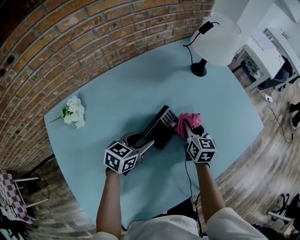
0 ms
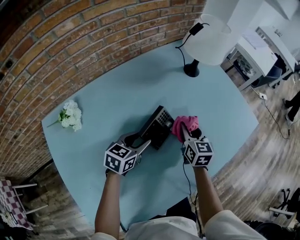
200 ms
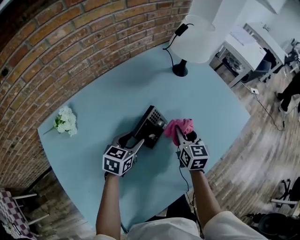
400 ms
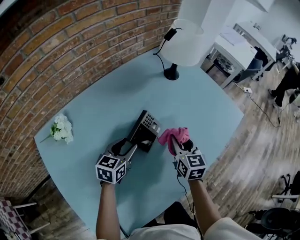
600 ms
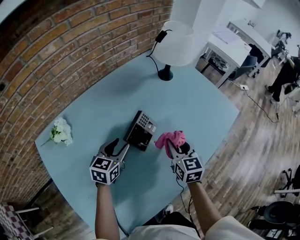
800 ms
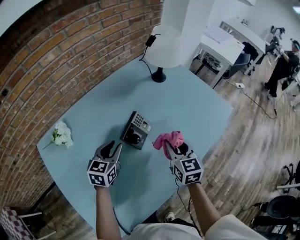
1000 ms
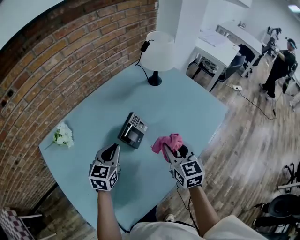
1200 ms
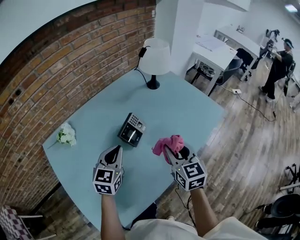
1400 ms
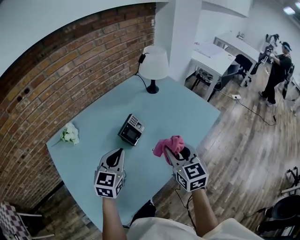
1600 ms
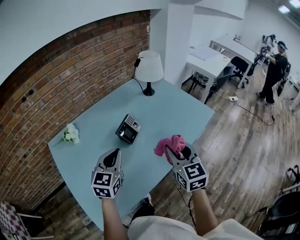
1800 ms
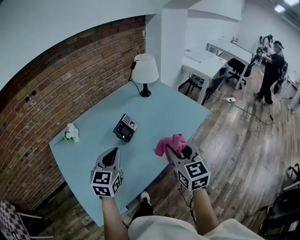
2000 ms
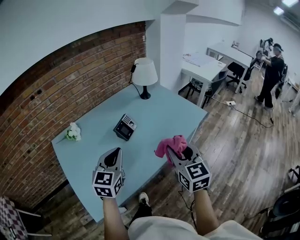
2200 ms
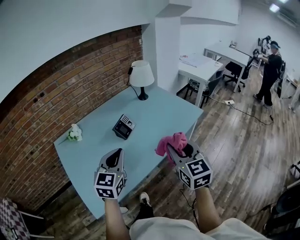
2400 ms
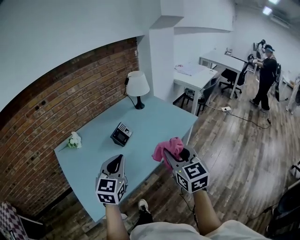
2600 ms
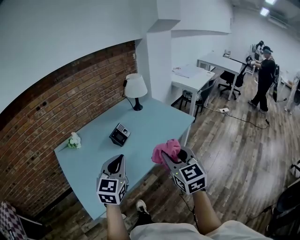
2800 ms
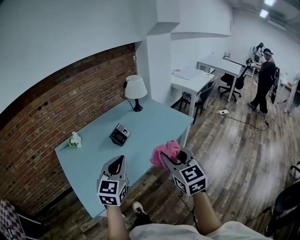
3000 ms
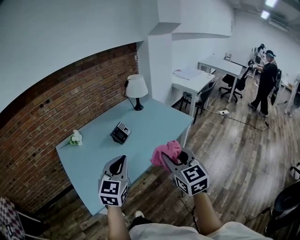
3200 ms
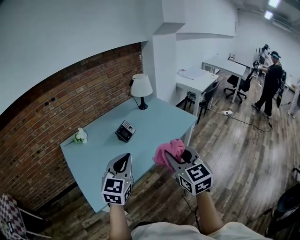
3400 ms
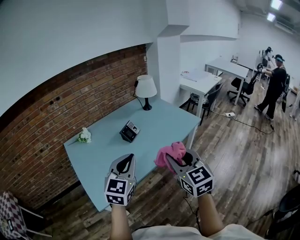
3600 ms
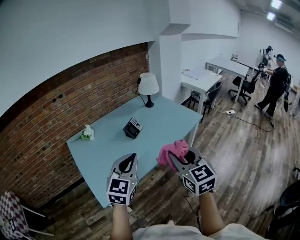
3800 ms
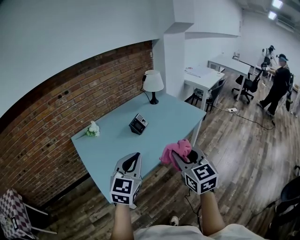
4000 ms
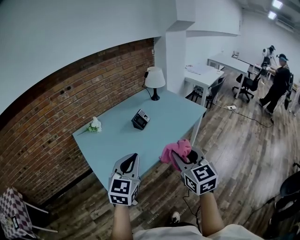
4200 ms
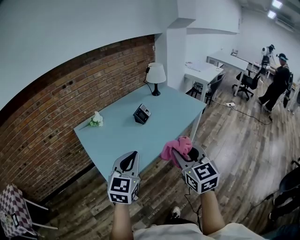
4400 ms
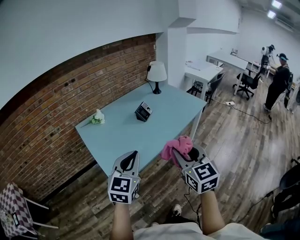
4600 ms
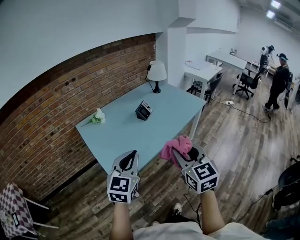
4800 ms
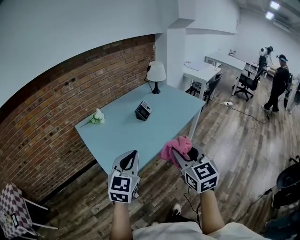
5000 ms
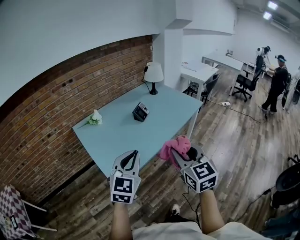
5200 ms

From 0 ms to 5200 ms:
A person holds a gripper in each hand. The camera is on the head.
From 0 ms to 1800 ms: The right gripper travels backward, upward and to the right by approximately 40 cm; the left gripper shifts some 30 cm upward and backward, rotates some 30 degrees, and closes its fingers.
From 1800 ms to 3400 ms: The left gripper goes about 30 cm backward, to the right and upward. Meanwhile the right gripper moves backward and upward, about 25 cm.
From 3400 ms to 5200 ms: The two grippers go some 20 cm backward and to the left.

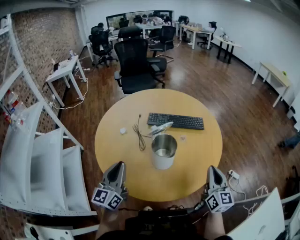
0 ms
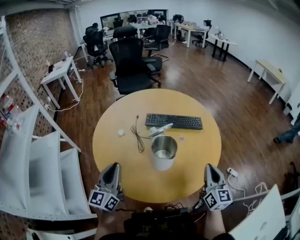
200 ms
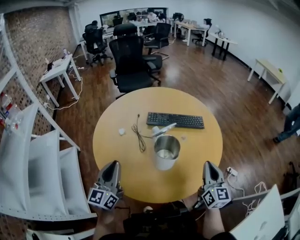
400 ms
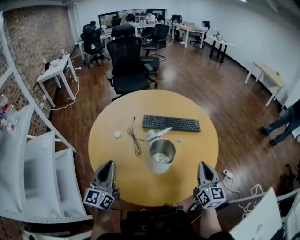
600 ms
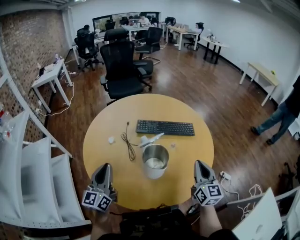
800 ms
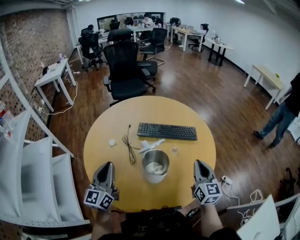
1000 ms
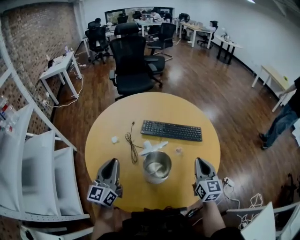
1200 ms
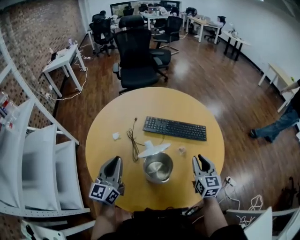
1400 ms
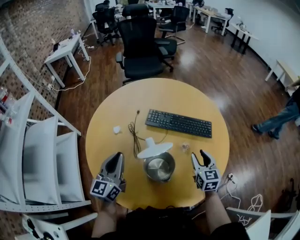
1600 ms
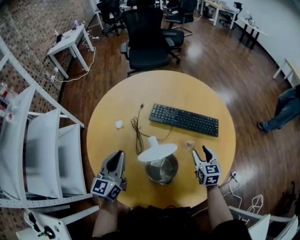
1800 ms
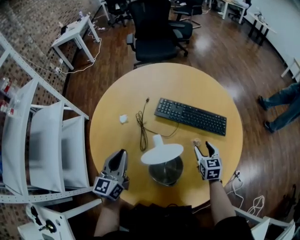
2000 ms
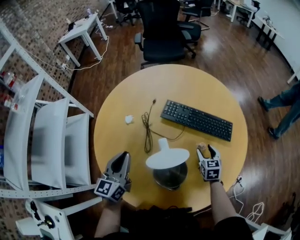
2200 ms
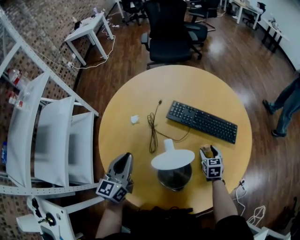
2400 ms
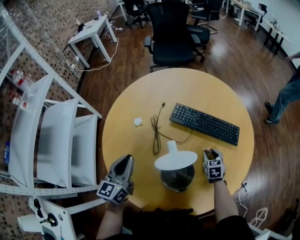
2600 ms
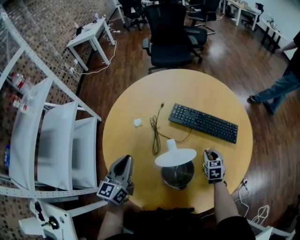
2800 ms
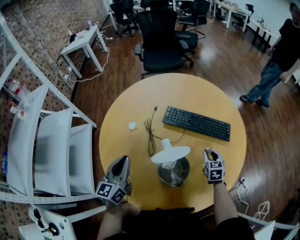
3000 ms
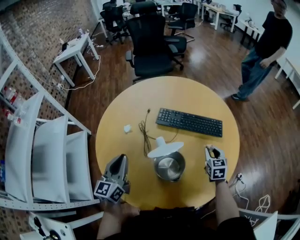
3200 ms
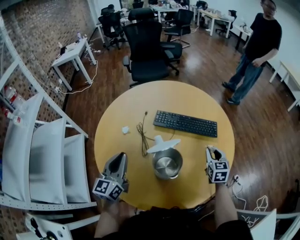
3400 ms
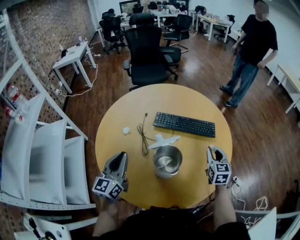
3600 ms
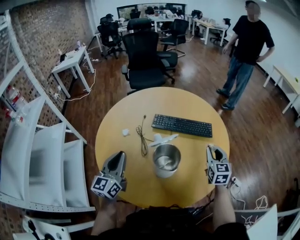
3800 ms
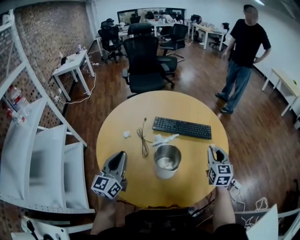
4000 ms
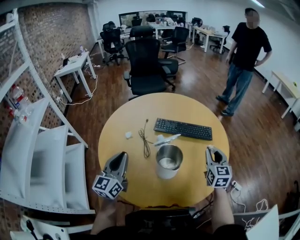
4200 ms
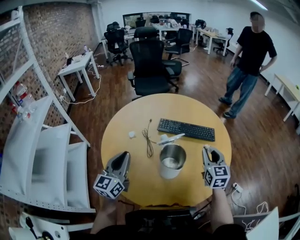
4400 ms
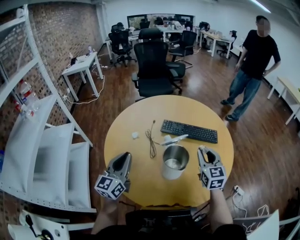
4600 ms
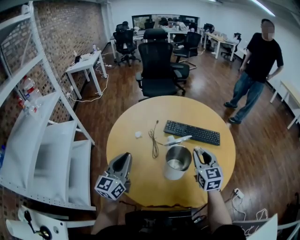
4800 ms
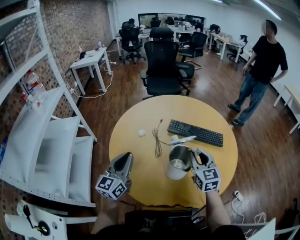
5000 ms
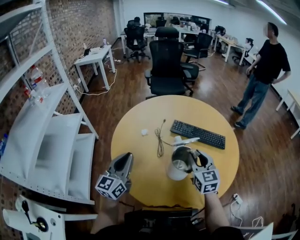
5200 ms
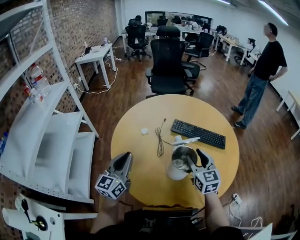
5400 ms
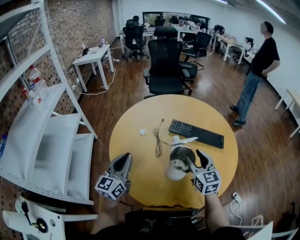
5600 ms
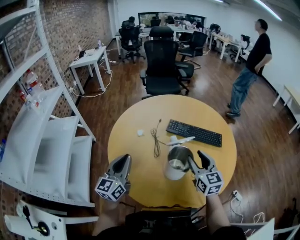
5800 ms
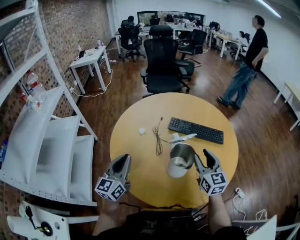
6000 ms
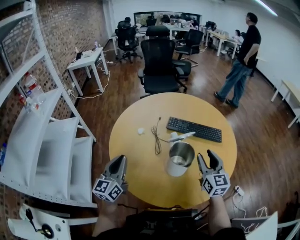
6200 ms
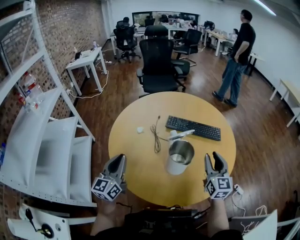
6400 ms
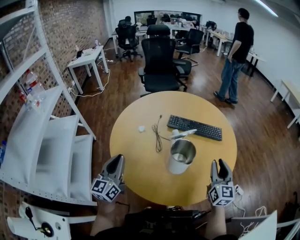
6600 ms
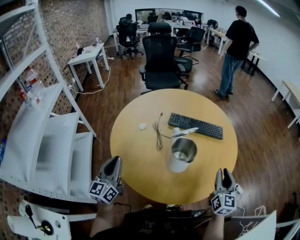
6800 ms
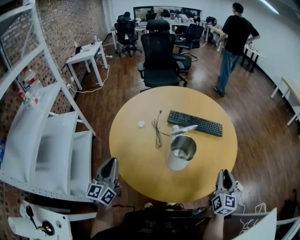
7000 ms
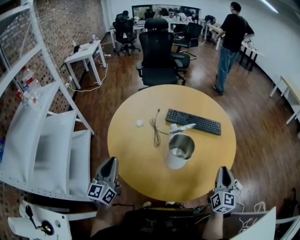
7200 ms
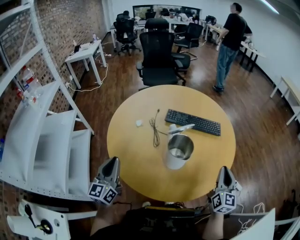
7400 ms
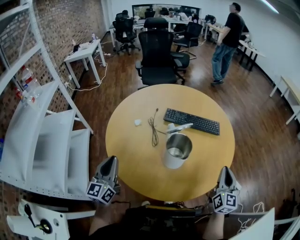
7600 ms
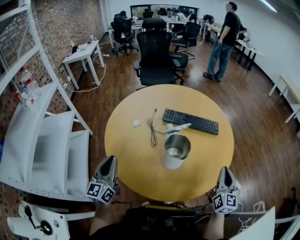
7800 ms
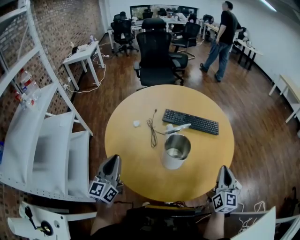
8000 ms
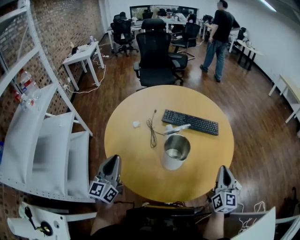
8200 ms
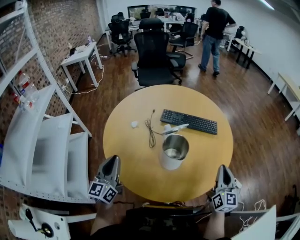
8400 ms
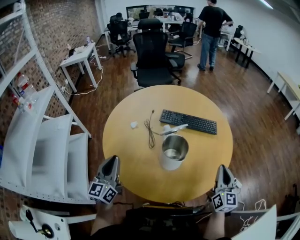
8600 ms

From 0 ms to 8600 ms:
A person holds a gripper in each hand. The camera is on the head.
From 0 ms to 1400 ms: The right gripper goes about 20 cm forward, and opens up. Meanwhile the left gripper shifts roughly 15 cm forward.
From 1400 ms to 2800 ms: The right gripper travels downward and forward by roughly 20 cm, tips its fingers downward by approximately 30 degrees, and opens, then closes once more, while the left gripper travels downward by approximately 5 cm.
From 2800 ms to 4400 ms: The right gripper heads upward and backward, covering some 25 cm, and tips its fingers upward by approximately 30 degrees. The left gripper moves upward and backward, about 10 cm.
From 4400 ms to 5800 ms: The right gripper heads to the left, covering approximately 10 cm, and opens.
From 5800 ms to 7200 ms: The right gripper moves to the right and backward, some 20 cm, turns by approximately 30 degrees, and closes up. The left gripper moves backward and to the left, approximately 10 cm.
From 7200 ms to 8600 ms: The grippers move only a little.

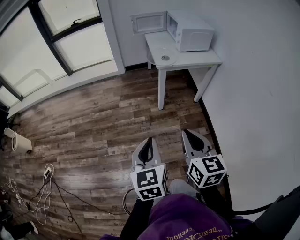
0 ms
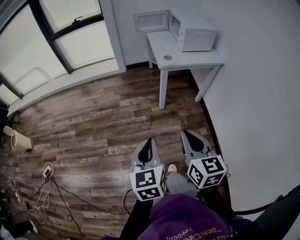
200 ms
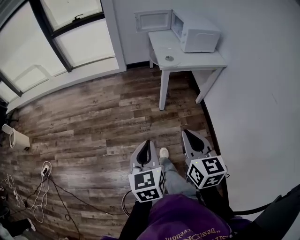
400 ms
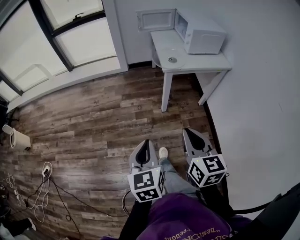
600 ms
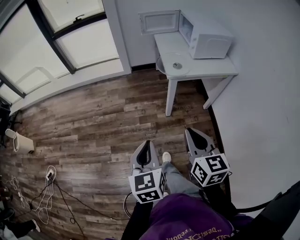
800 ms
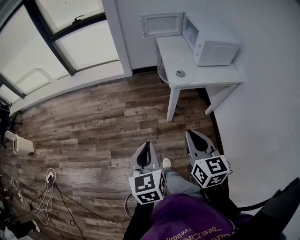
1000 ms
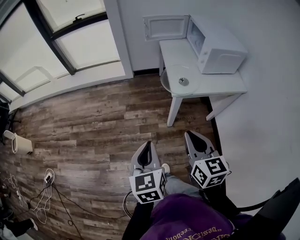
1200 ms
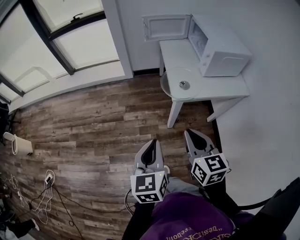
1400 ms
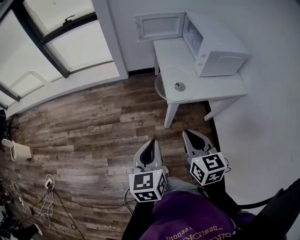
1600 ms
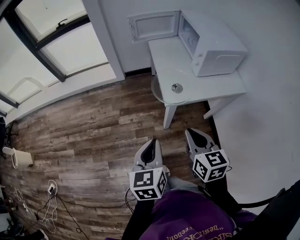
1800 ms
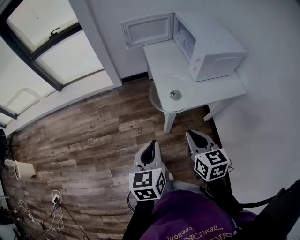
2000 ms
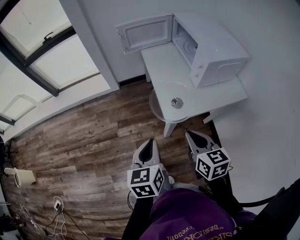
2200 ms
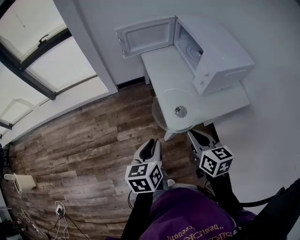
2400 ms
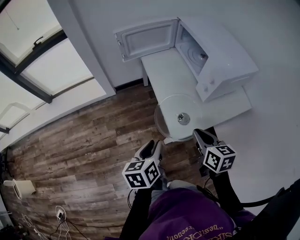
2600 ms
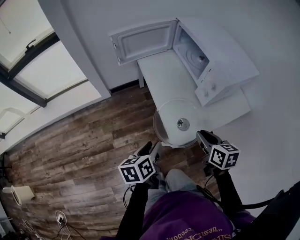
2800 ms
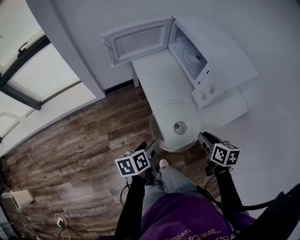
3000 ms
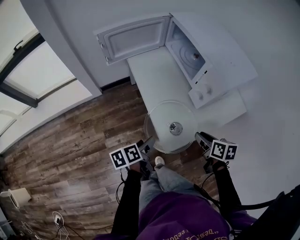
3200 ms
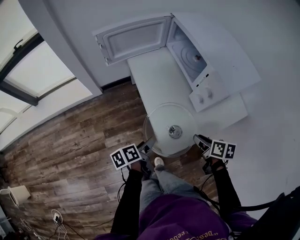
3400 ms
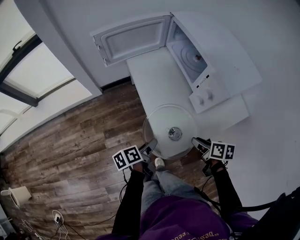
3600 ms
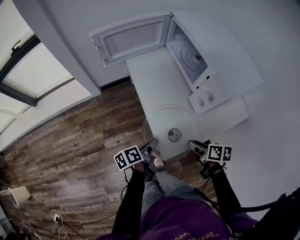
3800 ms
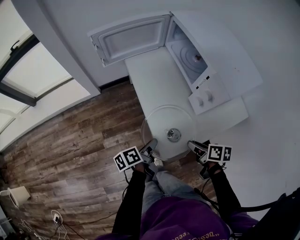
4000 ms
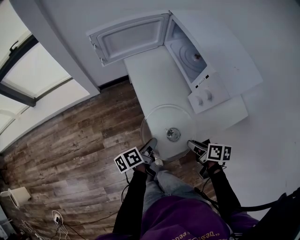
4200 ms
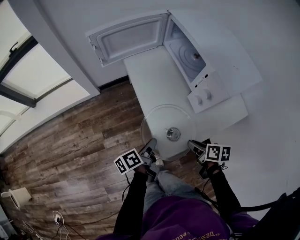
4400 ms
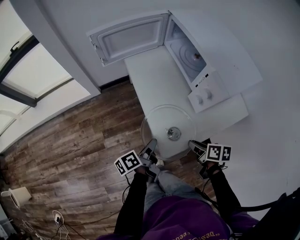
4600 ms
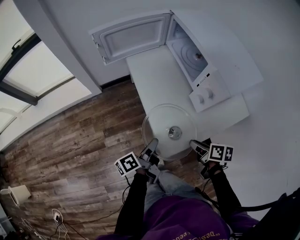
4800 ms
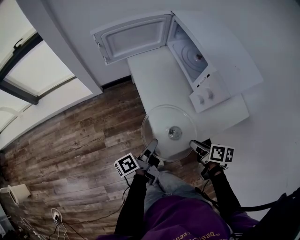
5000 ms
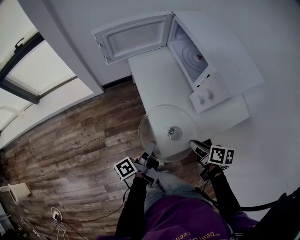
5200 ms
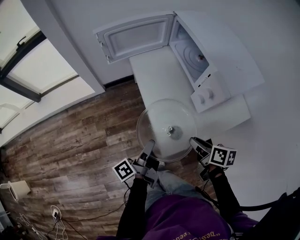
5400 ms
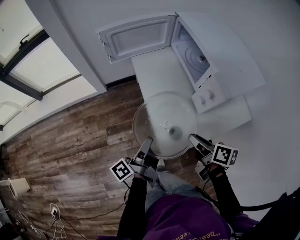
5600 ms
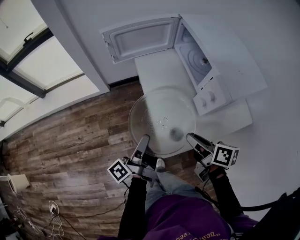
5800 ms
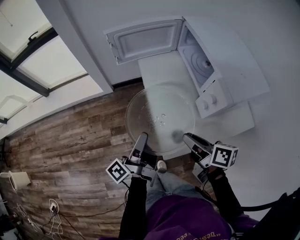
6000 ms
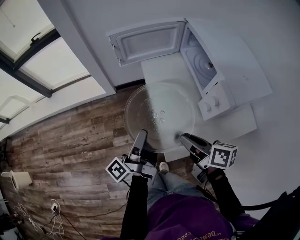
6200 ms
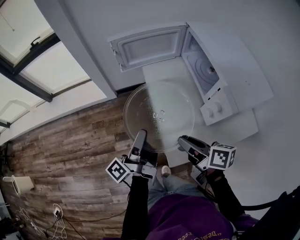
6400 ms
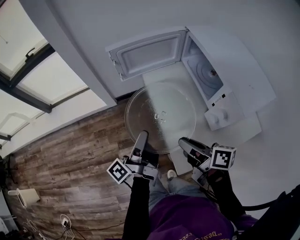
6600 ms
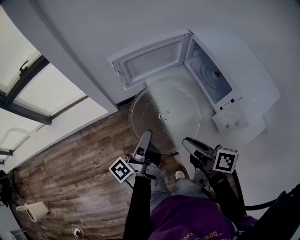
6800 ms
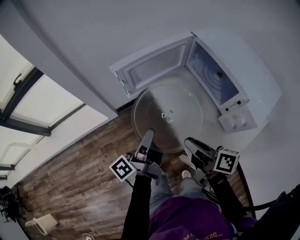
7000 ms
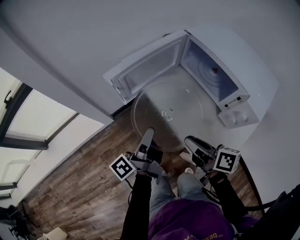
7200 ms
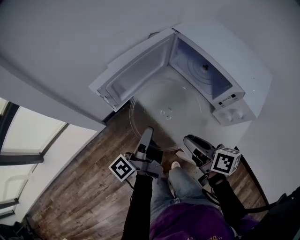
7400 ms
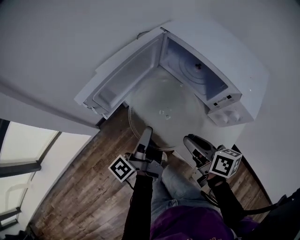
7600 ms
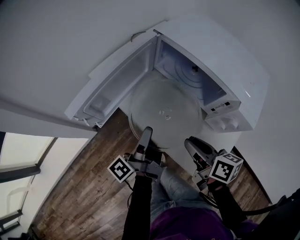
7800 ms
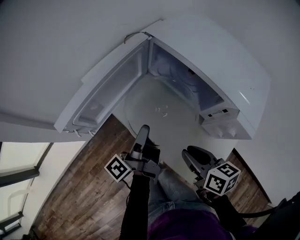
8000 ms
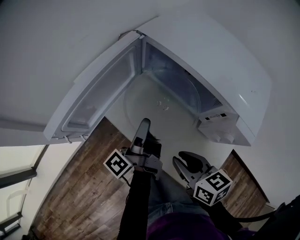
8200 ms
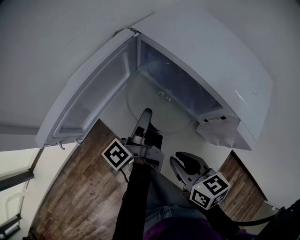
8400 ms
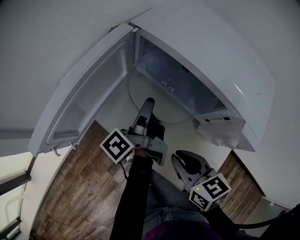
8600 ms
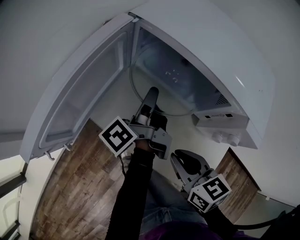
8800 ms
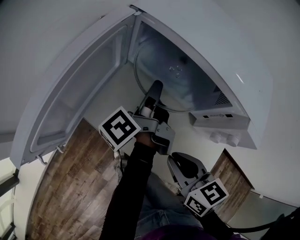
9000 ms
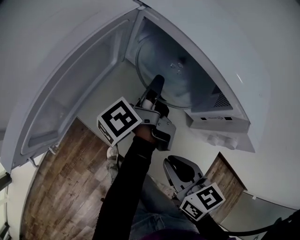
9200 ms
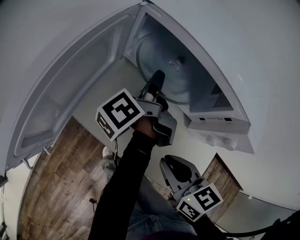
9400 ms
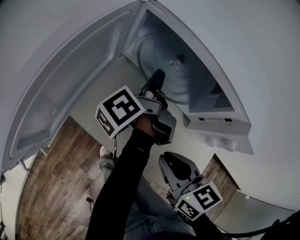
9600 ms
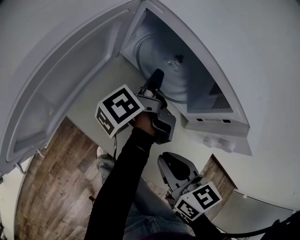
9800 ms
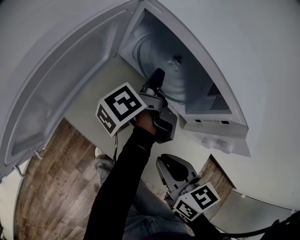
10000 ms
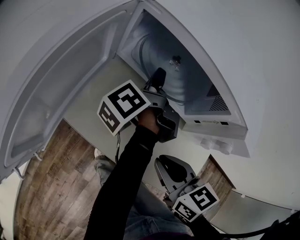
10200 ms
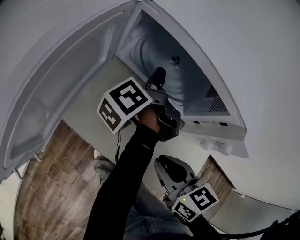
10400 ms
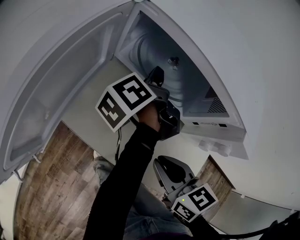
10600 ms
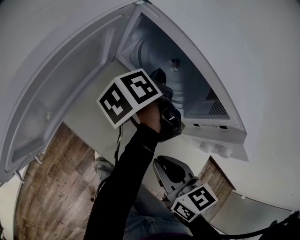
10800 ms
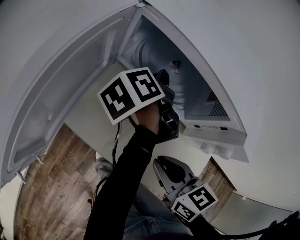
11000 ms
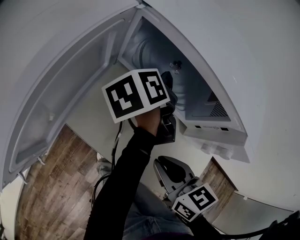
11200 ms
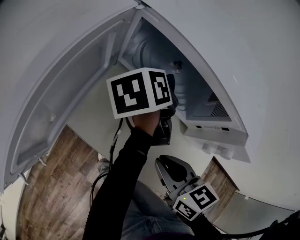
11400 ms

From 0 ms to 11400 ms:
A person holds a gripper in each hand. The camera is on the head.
From 0 ms to 1400 ms: The two grippers go some 35 cm forward.
From 1400 ms to 2800 ms: The right gripper heads forward, covering approximately 25 cm, and turns by some 30 degrees. The left gripper moves forward and downward, about 35 cm, swivels about 40 degrees, and opens up.
From 2800 ms to 4200 ms: The left gripper shifts approximately 15 cm downward, forward and to the right, turns by approximately 30 degrees, and opens, then closes once more. Meanwhile the right gripper travels downward by some 10 cm, and changes its angle by about 30 degrees.
From 4200 ms to 5600 ms: Both grippers move upward, some 10 cm. The left gripper rotates about 30 degrees.
From 5600 ms to 7200 ms: The left gripper ends up roughly 25 cm from where it was; the right gripper ends up some 25 cm from where it was.
From 7200 ms to 8600 ms: The right gripper heads to the right and forward, covering some 10 cm, and swivels about 40 degrees, while the left gripper goes roughly 25 cm forward and to the right.
From 8600 ms to 10000 ms: The left gripper moves forward and to the right, approximately 10 cm.
From 10000 ms to 11400 ms: The left gripper rotates some 40 degrees, and opens its fingers.
